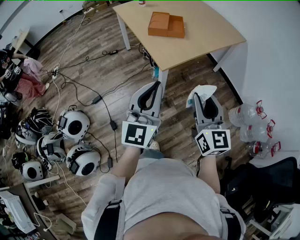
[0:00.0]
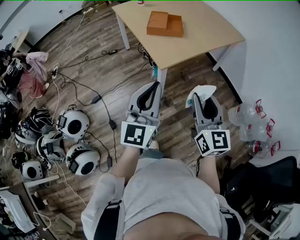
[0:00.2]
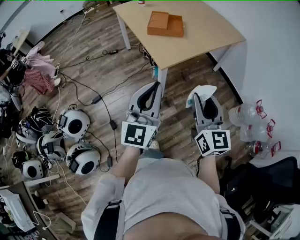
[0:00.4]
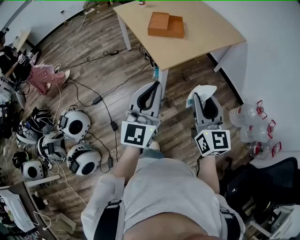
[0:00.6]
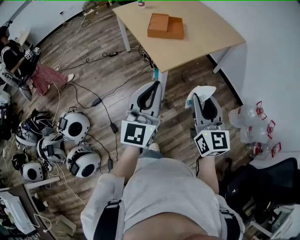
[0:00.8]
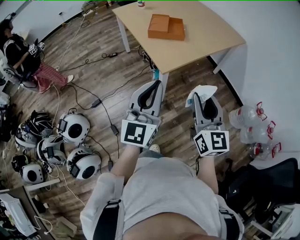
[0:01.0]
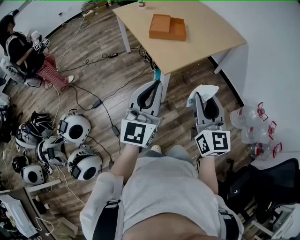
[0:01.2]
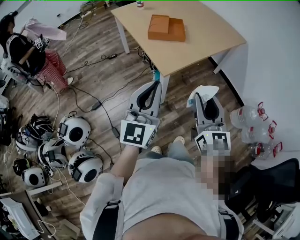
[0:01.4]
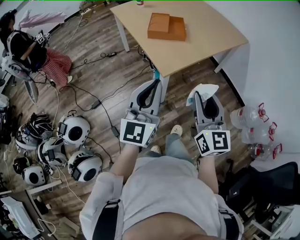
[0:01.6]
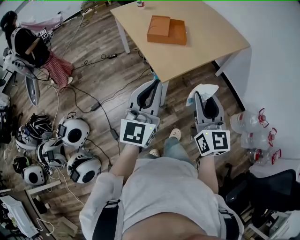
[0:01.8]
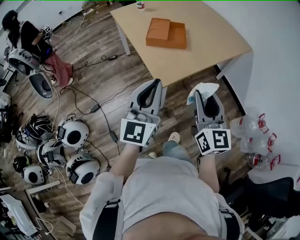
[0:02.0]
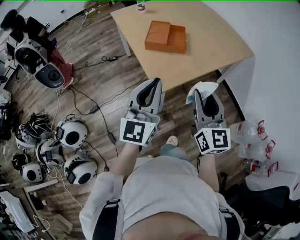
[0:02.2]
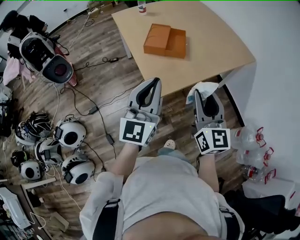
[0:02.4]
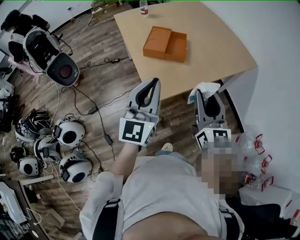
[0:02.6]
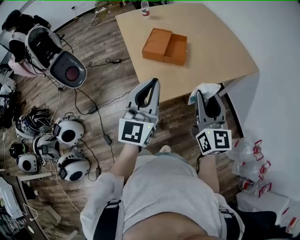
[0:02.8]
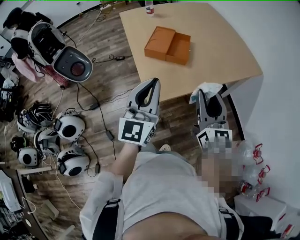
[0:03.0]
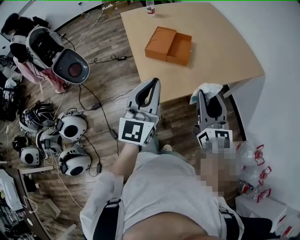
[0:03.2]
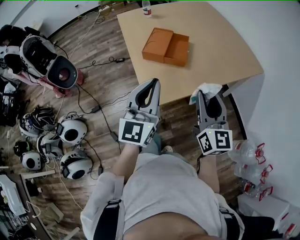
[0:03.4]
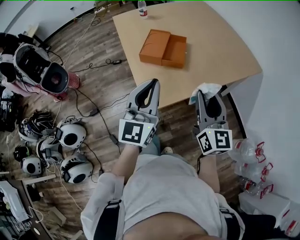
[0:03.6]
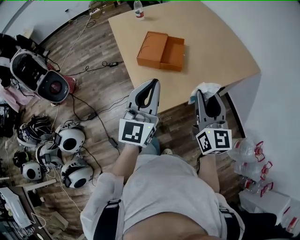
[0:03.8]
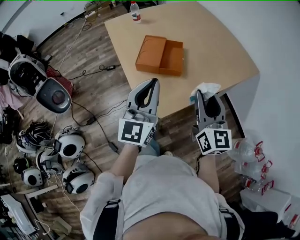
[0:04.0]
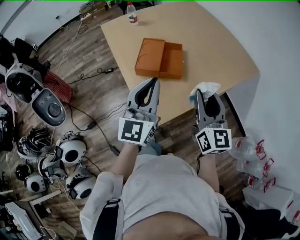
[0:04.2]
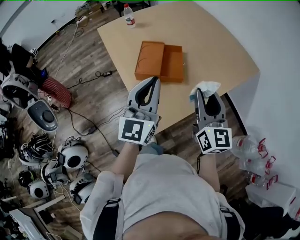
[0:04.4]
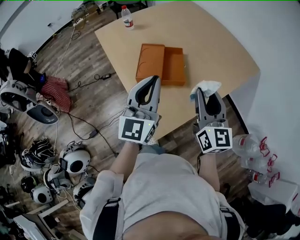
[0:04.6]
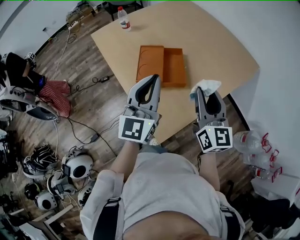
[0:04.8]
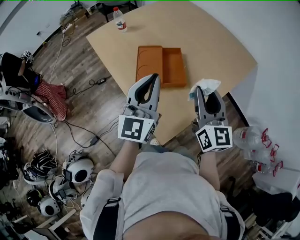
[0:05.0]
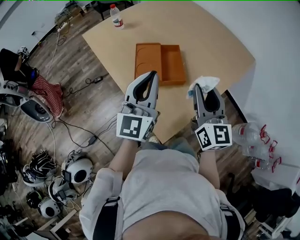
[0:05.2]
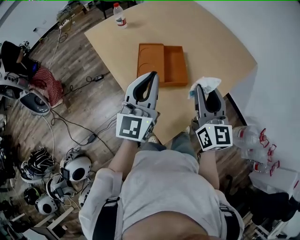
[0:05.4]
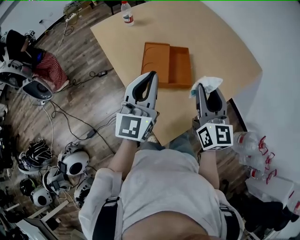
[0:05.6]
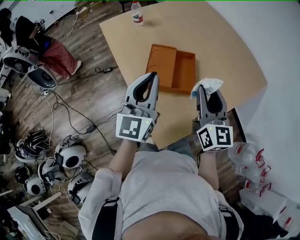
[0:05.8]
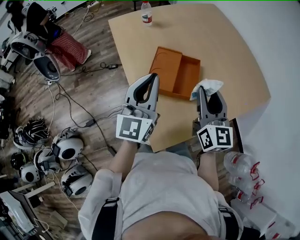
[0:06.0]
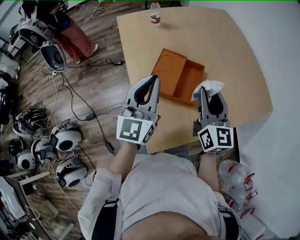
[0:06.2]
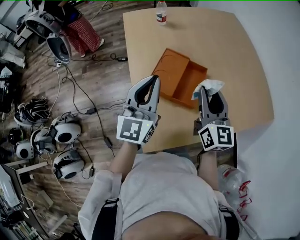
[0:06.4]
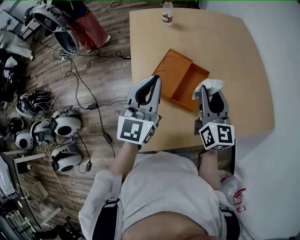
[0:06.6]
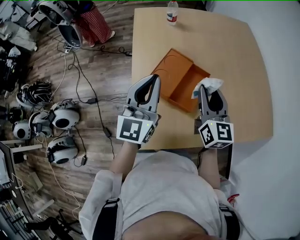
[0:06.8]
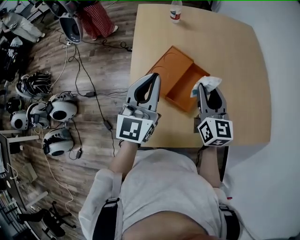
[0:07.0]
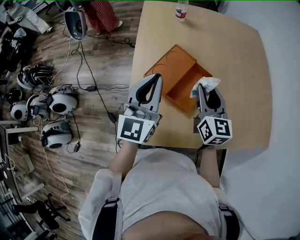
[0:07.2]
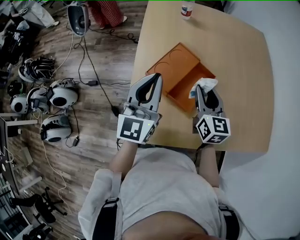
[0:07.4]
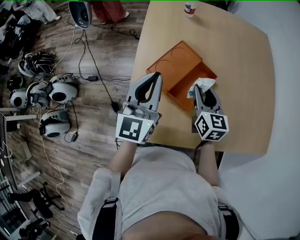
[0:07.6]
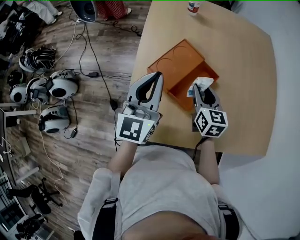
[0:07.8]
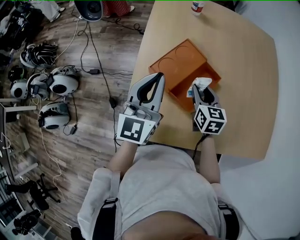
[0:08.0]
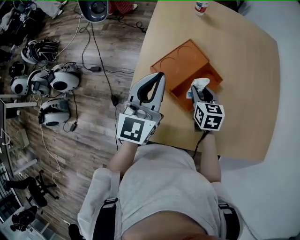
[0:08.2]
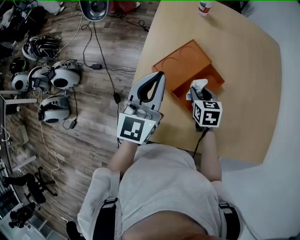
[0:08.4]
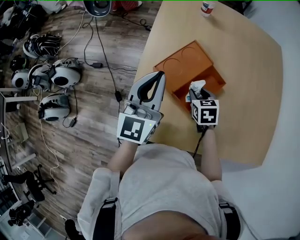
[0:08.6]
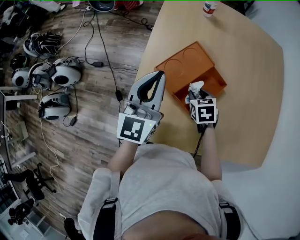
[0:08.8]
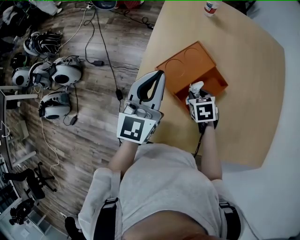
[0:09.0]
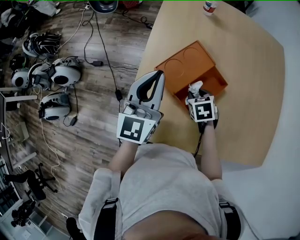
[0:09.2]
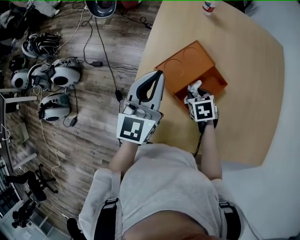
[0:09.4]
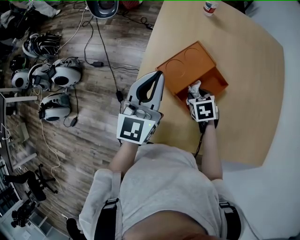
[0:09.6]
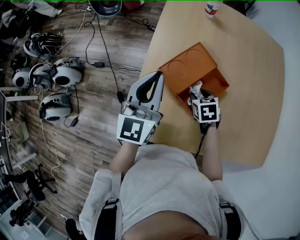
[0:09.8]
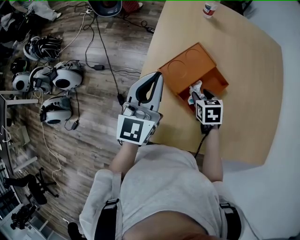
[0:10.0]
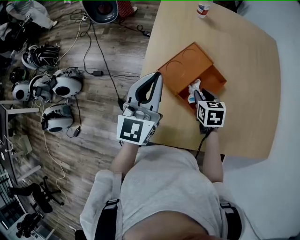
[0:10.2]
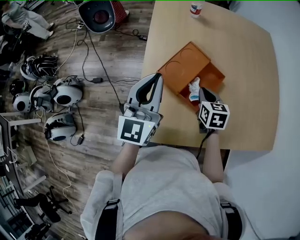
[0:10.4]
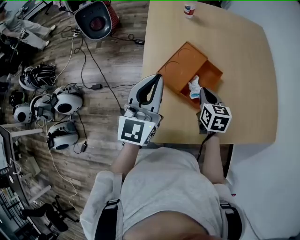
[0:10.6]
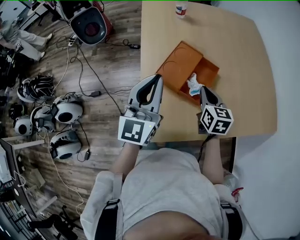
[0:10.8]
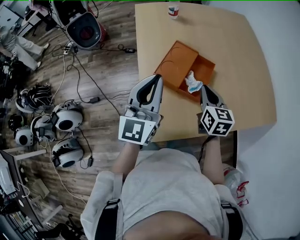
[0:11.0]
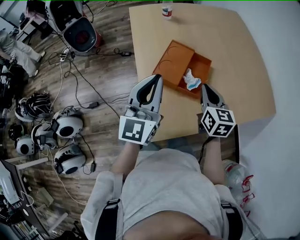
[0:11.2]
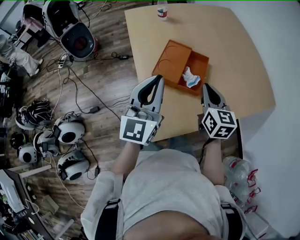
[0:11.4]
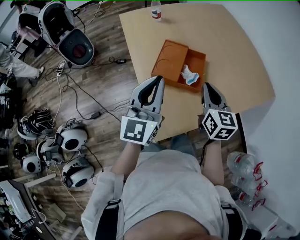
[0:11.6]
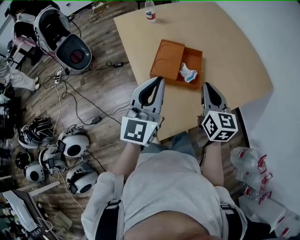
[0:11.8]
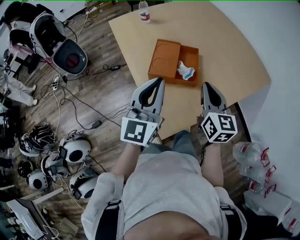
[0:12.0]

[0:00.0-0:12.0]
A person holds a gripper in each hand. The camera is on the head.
0:00.0 to 0:01.6: The grippers both shift forward by roughly 5 cm.
0:01.6 to 0:03.0: The grippers both shift forward and to the right by roughly 25 cm.
0:03.0 to 0:04.4: Both grippers travel together forward, roughly 15 cm.
0:04.4 to 0:06.0: Both grippers move forward and to the left, about 15 cm.
0:06.0 to 0:07.6: The right gripper travels downward by roughly 10 cm, and turns by some 40 degrees; the left gripper ends up approximately 5 cm from where it was, and changes its angle by some 30 degrees.
0:07.6 to 0:09.0: The right gripper moves downward, some 15 cm, and tips its fingers downward by approximately 40 degrees.
0:09.0 to 0:10.4: The right gripper goes roughly 5 cm upward, changes its angle by approximately 30 degrees, and closes its fingers.
0:10.4 to 0:12.0: The left gripper shifts by roughly 10 cm, and rotates approximately 30 degrees; the right gripper ends up approximately 25 cm from where it was, and angles its fingers upward, by roughly 30 degrees.

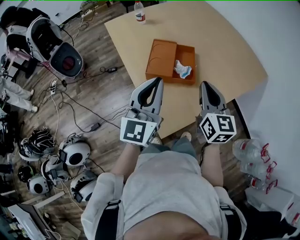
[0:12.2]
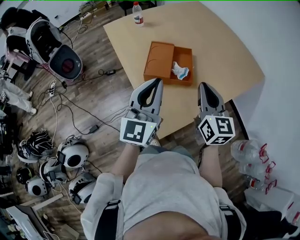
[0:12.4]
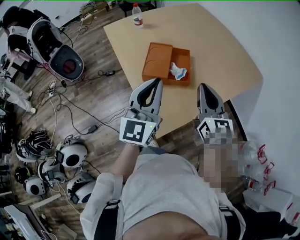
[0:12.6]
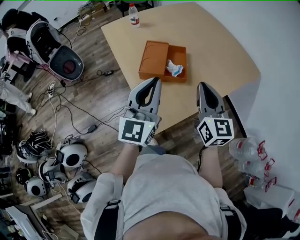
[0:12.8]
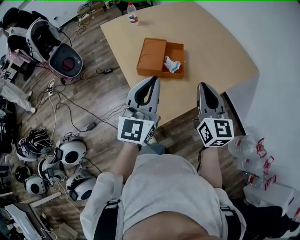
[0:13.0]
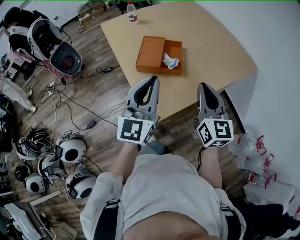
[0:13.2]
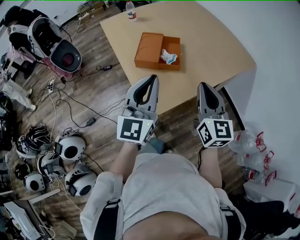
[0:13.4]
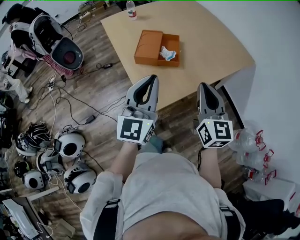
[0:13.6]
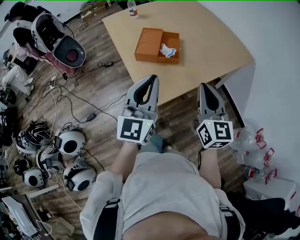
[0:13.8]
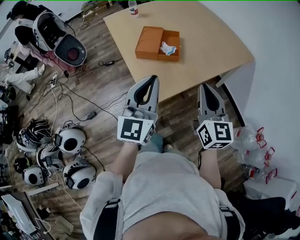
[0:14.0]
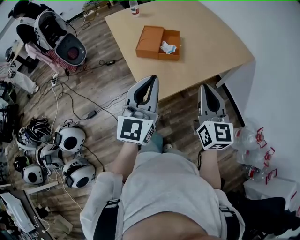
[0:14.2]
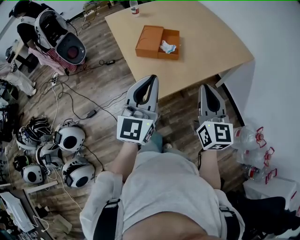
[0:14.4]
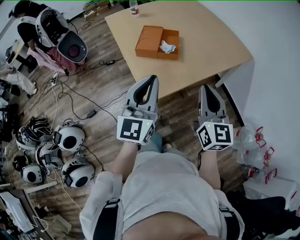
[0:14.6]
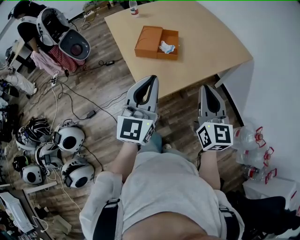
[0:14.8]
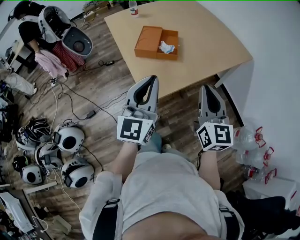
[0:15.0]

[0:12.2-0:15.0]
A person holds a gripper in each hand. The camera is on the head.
0:12.2 to 0:13.6: Both grippers move backward and to the right, about 15 cm.
0:13.6 to 0:15.0: Both grippers travel together backward, some 5 cm.

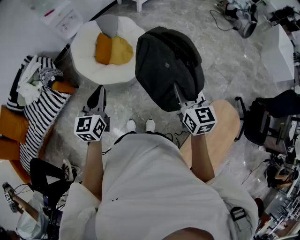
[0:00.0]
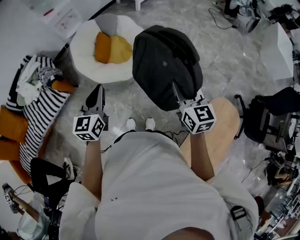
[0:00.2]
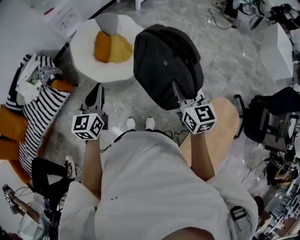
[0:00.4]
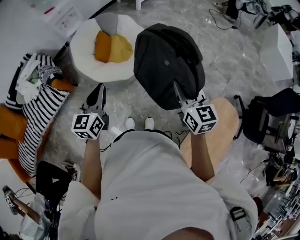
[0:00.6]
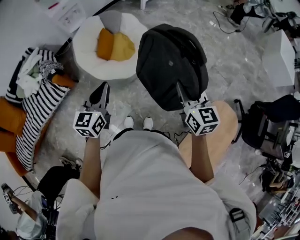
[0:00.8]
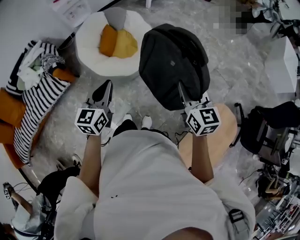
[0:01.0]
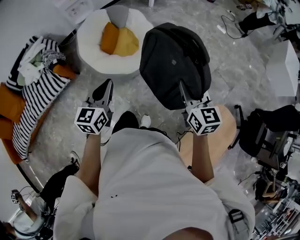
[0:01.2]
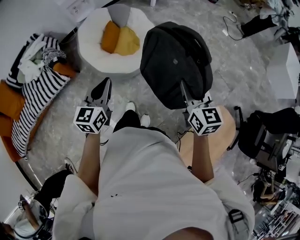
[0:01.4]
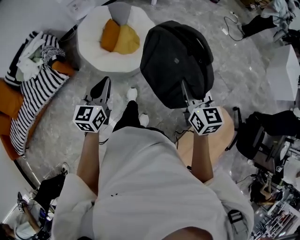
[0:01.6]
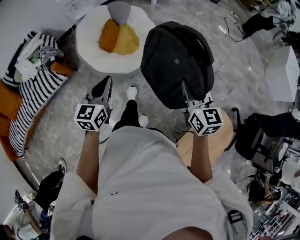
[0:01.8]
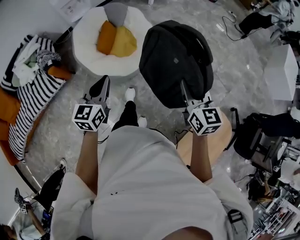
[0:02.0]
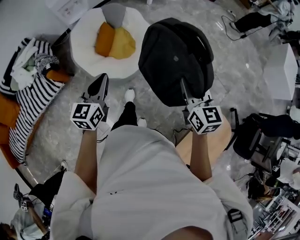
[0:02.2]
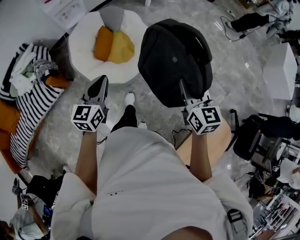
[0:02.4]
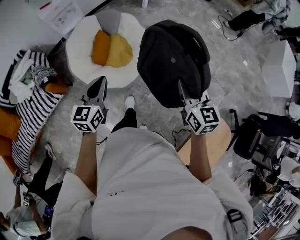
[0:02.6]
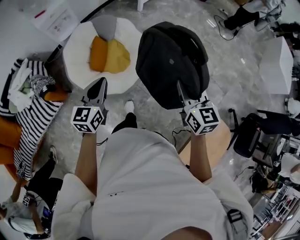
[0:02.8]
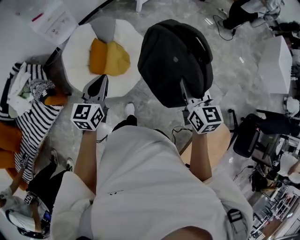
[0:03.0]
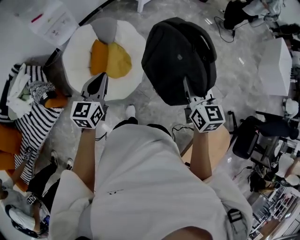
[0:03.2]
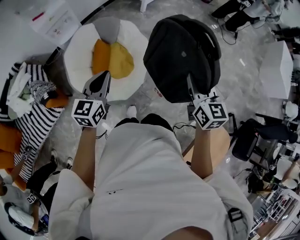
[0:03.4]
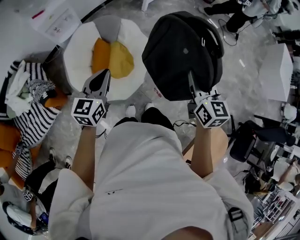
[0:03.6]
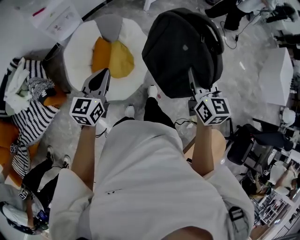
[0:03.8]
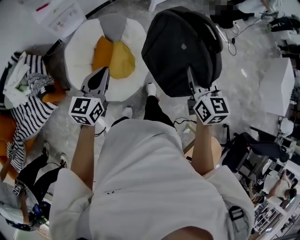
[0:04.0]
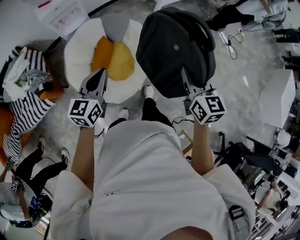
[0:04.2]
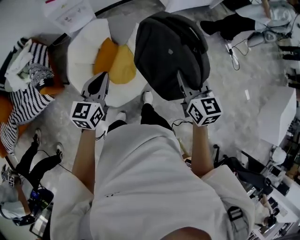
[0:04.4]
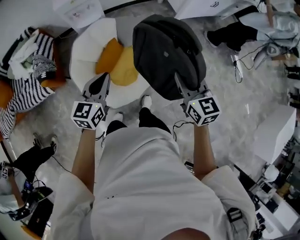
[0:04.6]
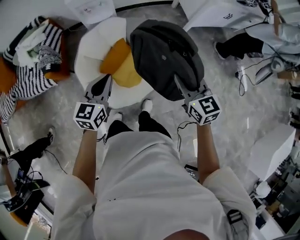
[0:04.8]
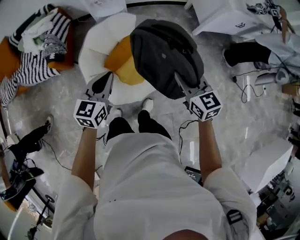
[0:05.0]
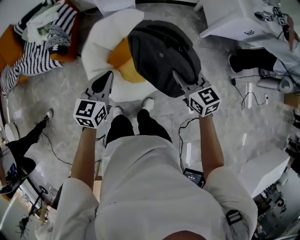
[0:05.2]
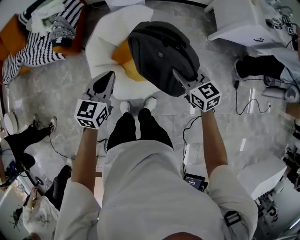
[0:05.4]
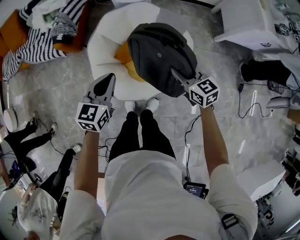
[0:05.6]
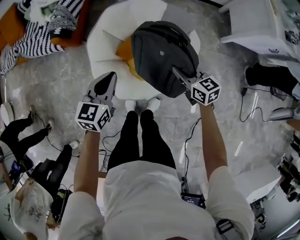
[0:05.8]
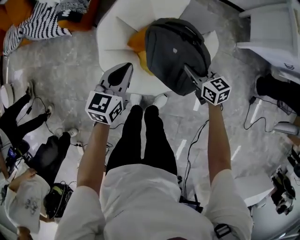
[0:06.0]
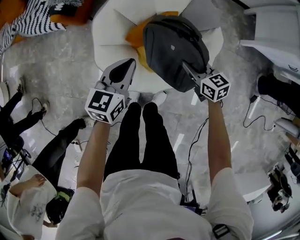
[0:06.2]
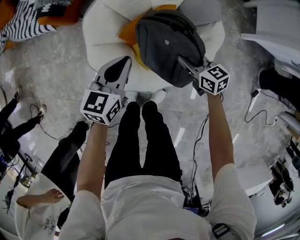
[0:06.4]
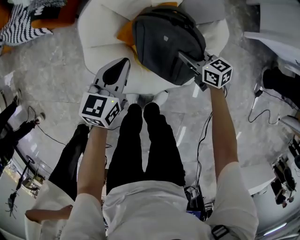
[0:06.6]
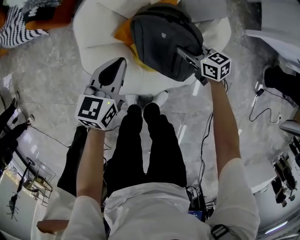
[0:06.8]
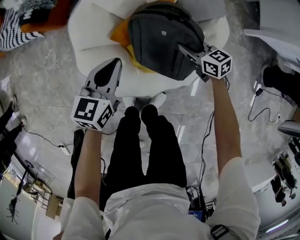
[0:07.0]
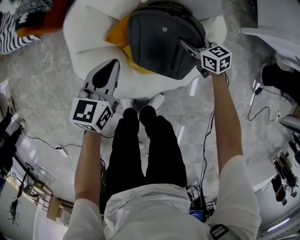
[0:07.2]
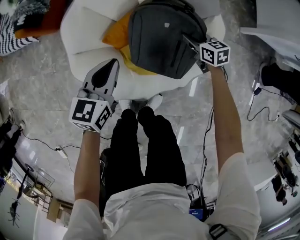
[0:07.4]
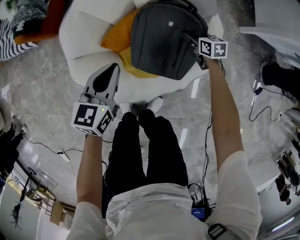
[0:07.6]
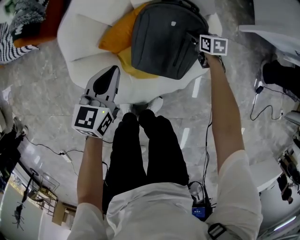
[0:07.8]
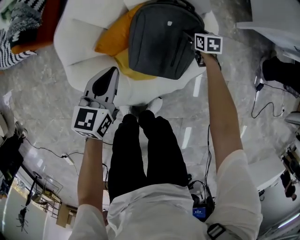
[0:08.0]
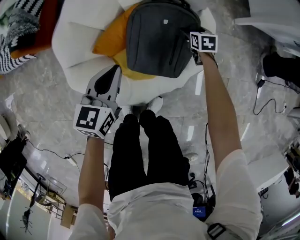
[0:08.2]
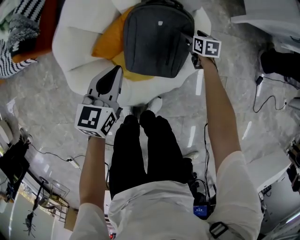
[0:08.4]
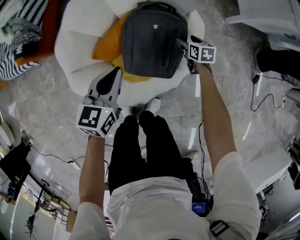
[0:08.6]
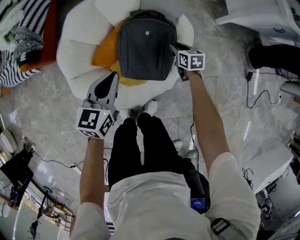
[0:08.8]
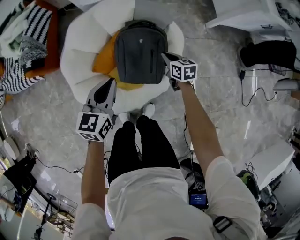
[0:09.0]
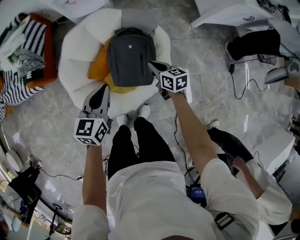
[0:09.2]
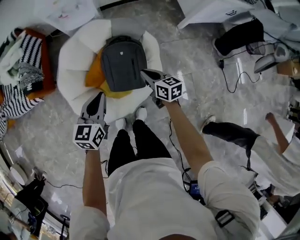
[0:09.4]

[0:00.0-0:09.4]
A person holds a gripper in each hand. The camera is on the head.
0:00.0 to 0:01.6: The grippers stay close to where they were, moving slightly.
0:01.6 to 0:03.2: Both grippers move forward, approximately 30 cm.
0:03.2 to 0:04.8: The right gripper shifts by approximately 35 cm, and rotates approximately 50 degrees, while the left gripper shifts by approximately 15 cm, and rotates roughly 30 degrees.
0:04.8 to 0:06.2: The left gripper goes approximately 20 cm downward, and changes its angle by some 20 degrees. Meanwhile the right gripper shifts some 35 cm downward, and rotates approximately 40 degrees.
0:06.2 to 0:07.8: The left gripper goes about 15 cm downward; the right gripper travels downward, to the right and forward by roughly 30 cm, turns by roughly 30 degrees, and opens.
0:07.8 to 0:09.4: The left gripper is displaced upward by about 20 cm; the right gripper travels upward and backward by some 35 cm, turns by some 30 degrees, and closes.
